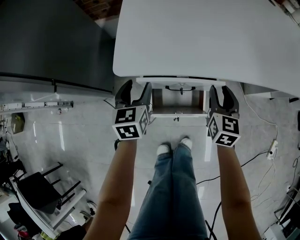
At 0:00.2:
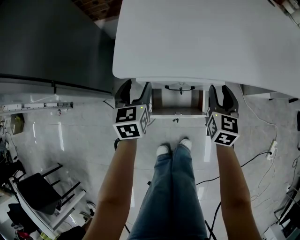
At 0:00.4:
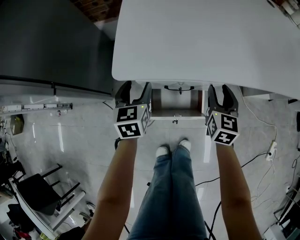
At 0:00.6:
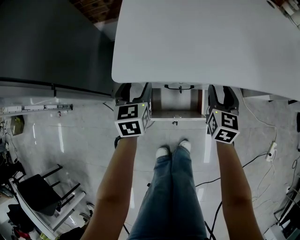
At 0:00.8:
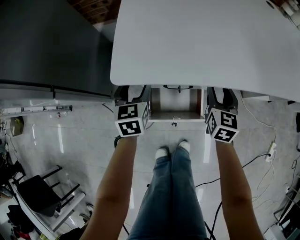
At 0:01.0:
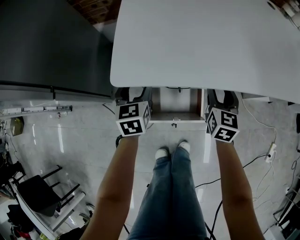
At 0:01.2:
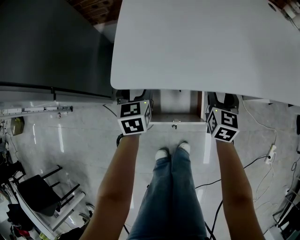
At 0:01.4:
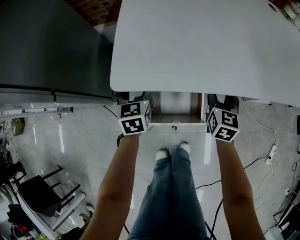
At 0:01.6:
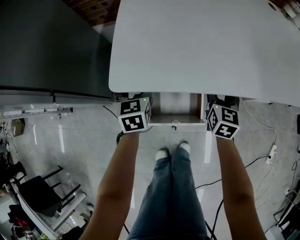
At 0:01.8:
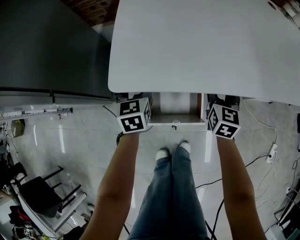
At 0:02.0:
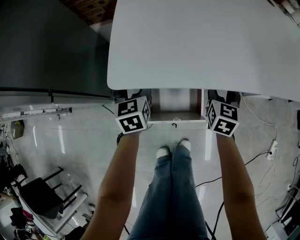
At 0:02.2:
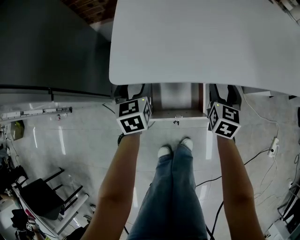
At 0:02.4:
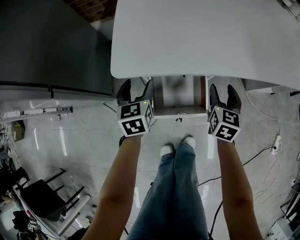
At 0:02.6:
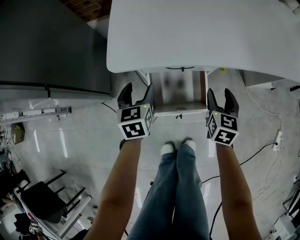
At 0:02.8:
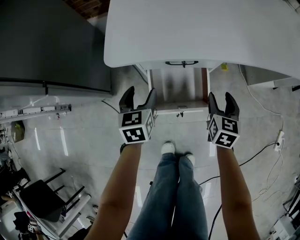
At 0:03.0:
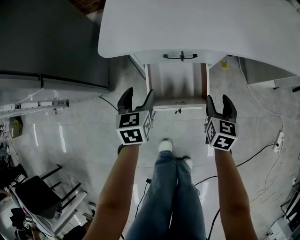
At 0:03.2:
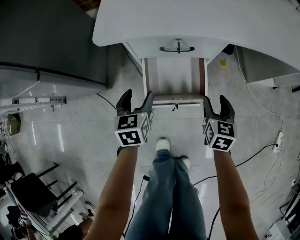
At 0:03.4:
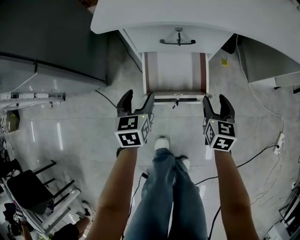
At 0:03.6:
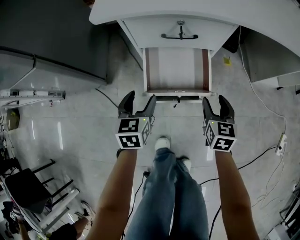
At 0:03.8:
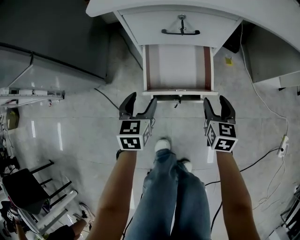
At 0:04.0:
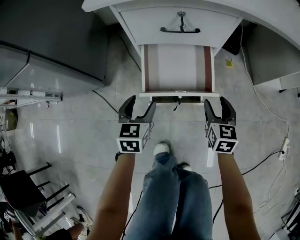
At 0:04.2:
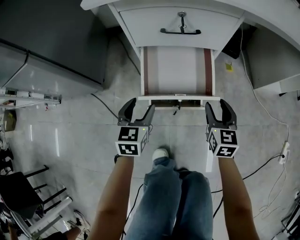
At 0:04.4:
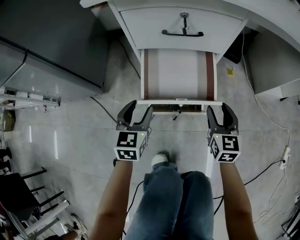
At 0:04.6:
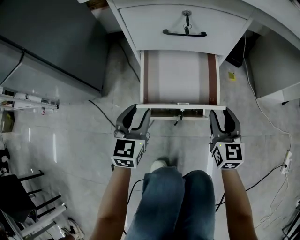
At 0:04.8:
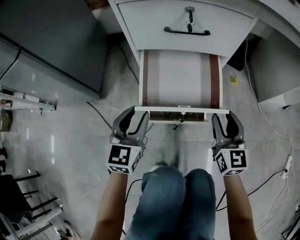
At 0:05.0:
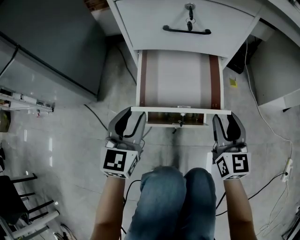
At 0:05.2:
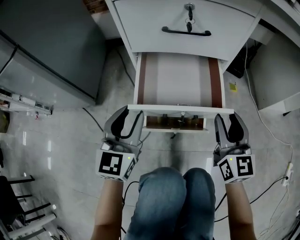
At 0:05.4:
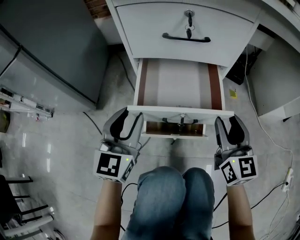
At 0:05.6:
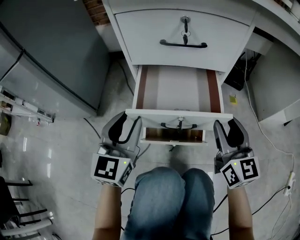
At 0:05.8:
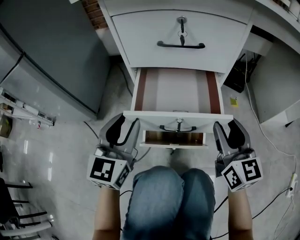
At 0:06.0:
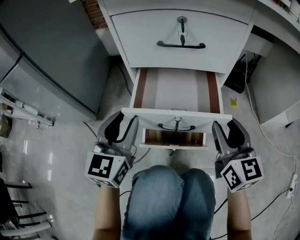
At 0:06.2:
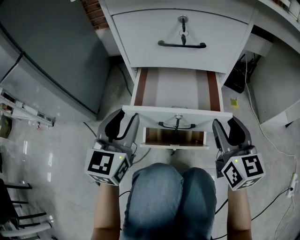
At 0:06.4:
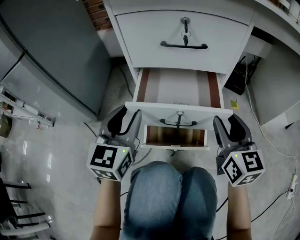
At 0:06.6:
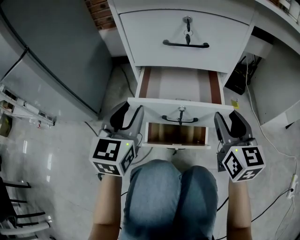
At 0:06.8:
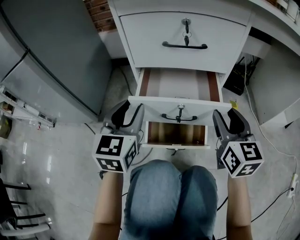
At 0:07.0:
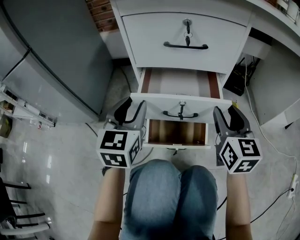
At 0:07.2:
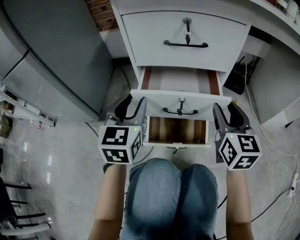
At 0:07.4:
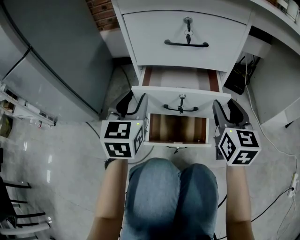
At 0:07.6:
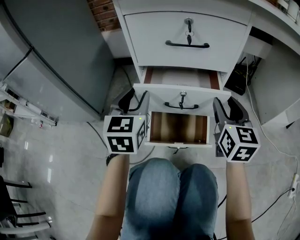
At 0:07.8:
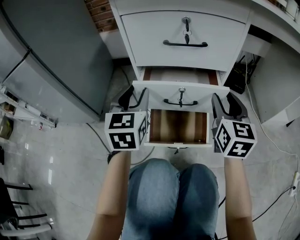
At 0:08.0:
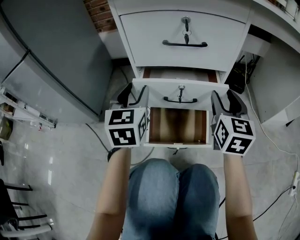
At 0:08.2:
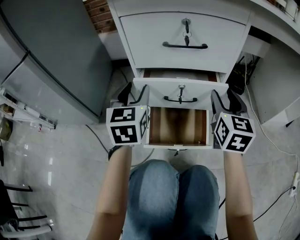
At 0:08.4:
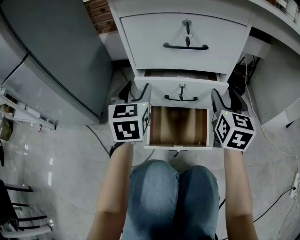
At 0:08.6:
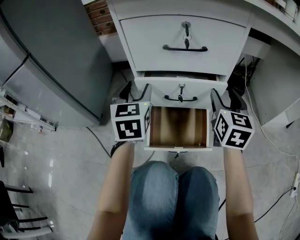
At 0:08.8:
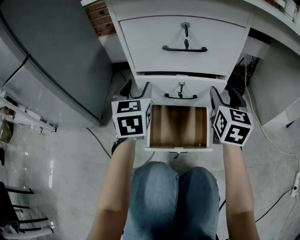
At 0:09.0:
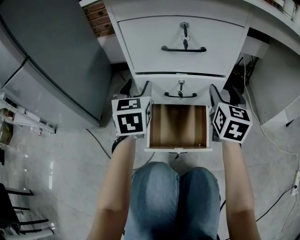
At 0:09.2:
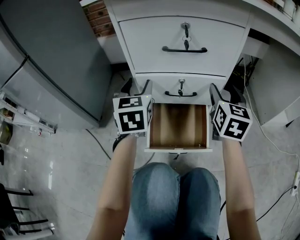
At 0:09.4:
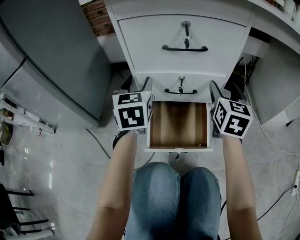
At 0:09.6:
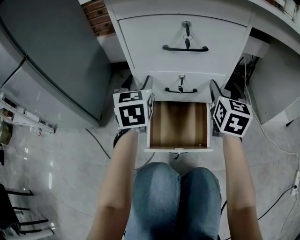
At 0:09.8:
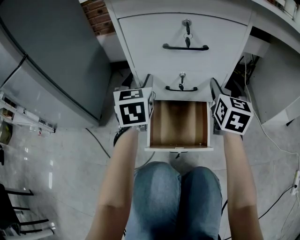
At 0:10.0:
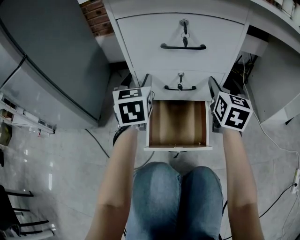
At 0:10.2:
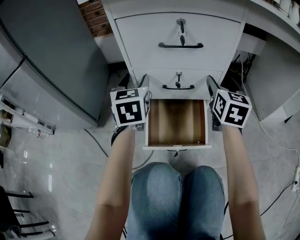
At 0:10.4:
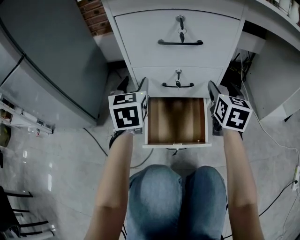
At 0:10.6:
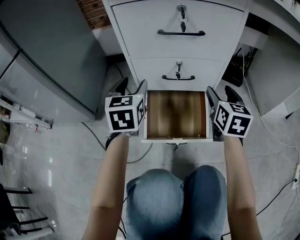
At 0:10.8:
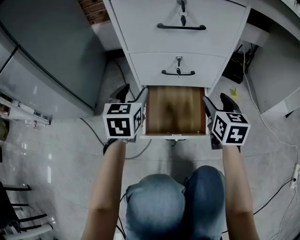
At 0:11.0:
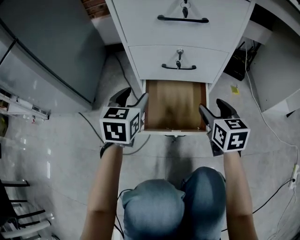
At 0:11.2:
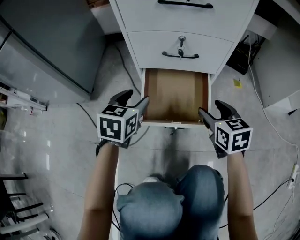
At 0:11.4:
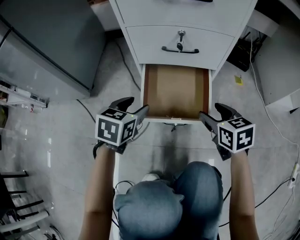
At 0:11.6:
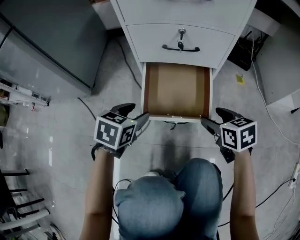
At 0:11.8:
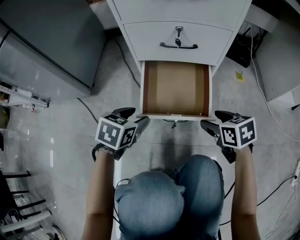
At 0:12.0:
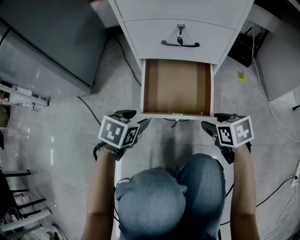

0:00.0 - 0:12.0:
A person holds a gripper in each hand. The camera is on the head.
0:00.0 - 0:01.6: Both grippers travel together forward, roughly 5 cm. The right gripper opens.
0:01.6 - 0:03.0: The two grippers go approximately 15 cm backward and downward.
0:03.0 - 0:04.4: The right gripper shifts roughly 10 cm downward. Meanwhile the left gripper goes about 15 cm downward and backward.
0:04.4 - 0:06.0: The right gripper ends up roughly 5 cm from where it was; the left gripper ends up some 5 cm from where it was.
0:06.0 - 0:07.6: The two grippers go approximately 5 cm forward.
0:07.6 - 0:09.0: The grippers both shift forward by about 5 cm.
0:09.0 - 0:10.4: The grippers make only small movements.
0:10.4 - 0:12.0: Both grippers travel together downward and backward, some 30 cm. The left gripper angles its fingers downward, by about 40 degrees. The right gripper tips its fingers downward by about 40 degrees.

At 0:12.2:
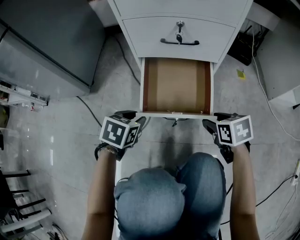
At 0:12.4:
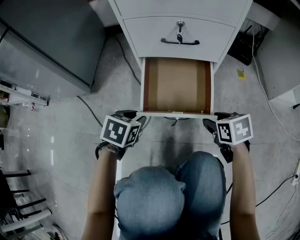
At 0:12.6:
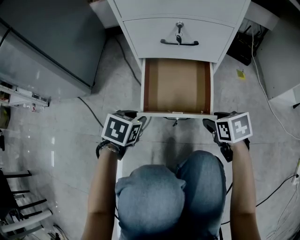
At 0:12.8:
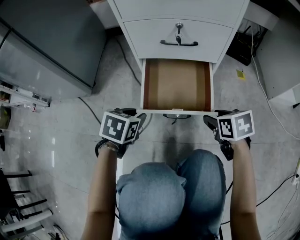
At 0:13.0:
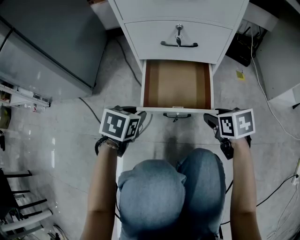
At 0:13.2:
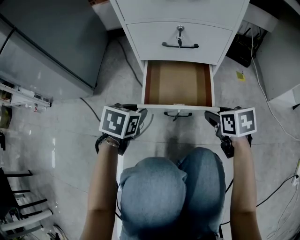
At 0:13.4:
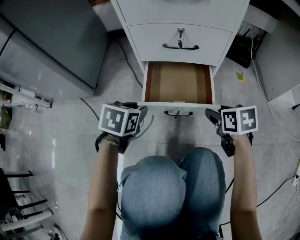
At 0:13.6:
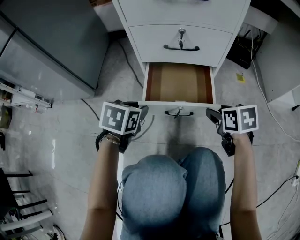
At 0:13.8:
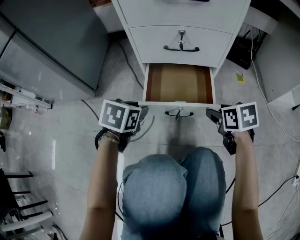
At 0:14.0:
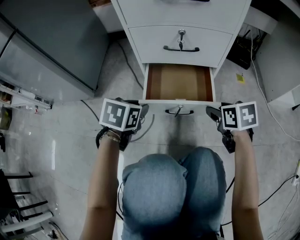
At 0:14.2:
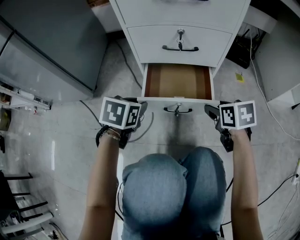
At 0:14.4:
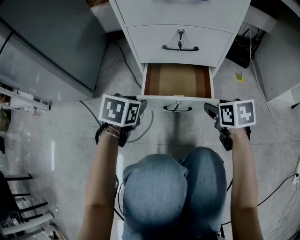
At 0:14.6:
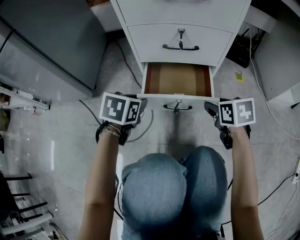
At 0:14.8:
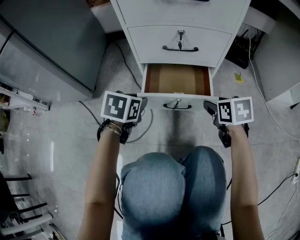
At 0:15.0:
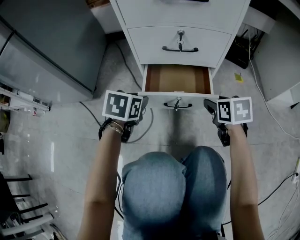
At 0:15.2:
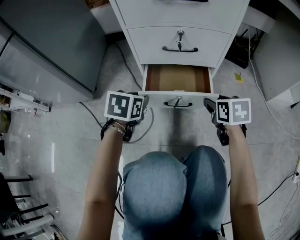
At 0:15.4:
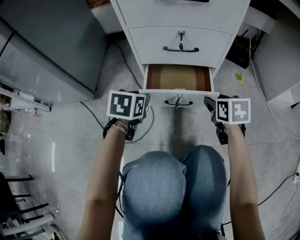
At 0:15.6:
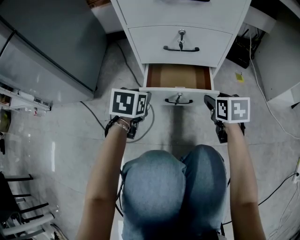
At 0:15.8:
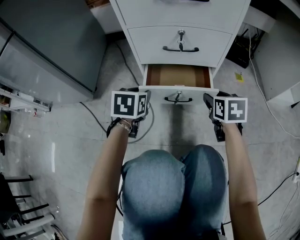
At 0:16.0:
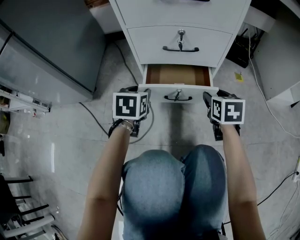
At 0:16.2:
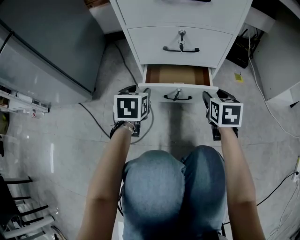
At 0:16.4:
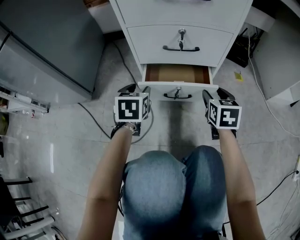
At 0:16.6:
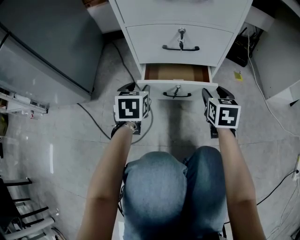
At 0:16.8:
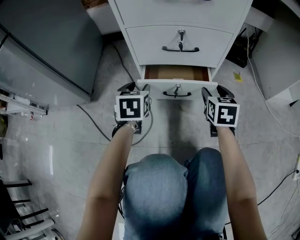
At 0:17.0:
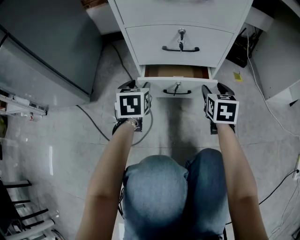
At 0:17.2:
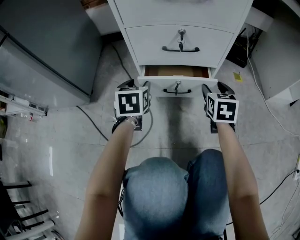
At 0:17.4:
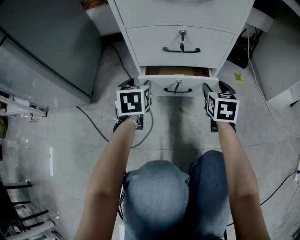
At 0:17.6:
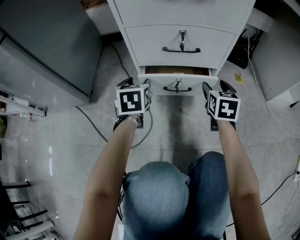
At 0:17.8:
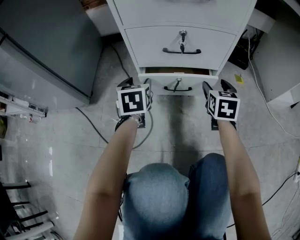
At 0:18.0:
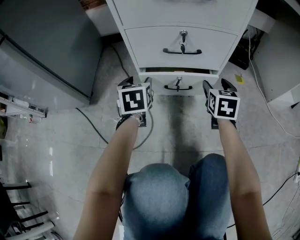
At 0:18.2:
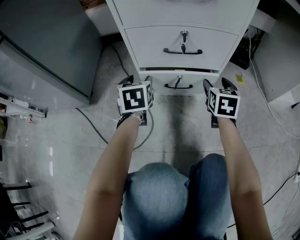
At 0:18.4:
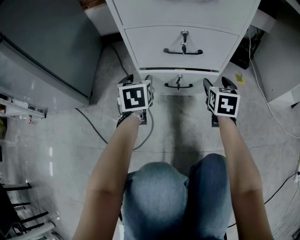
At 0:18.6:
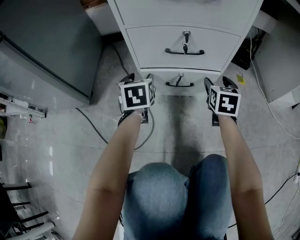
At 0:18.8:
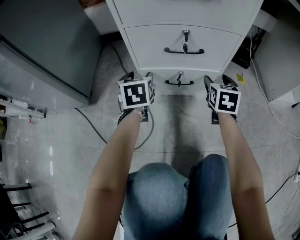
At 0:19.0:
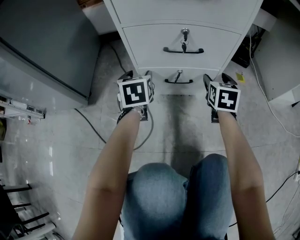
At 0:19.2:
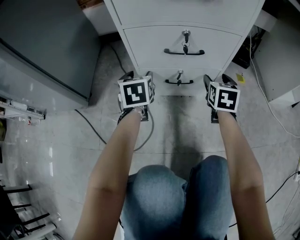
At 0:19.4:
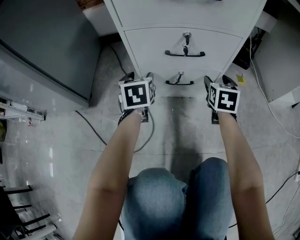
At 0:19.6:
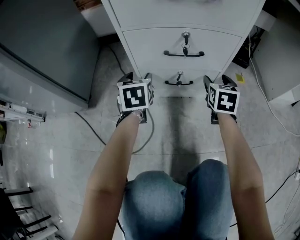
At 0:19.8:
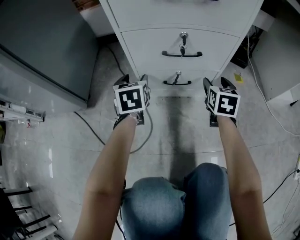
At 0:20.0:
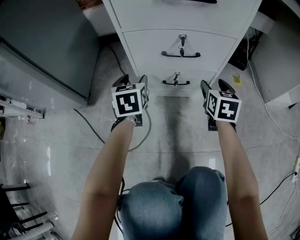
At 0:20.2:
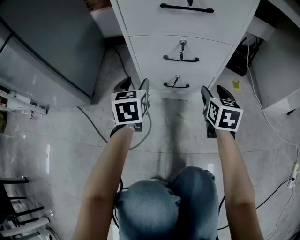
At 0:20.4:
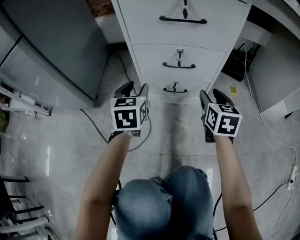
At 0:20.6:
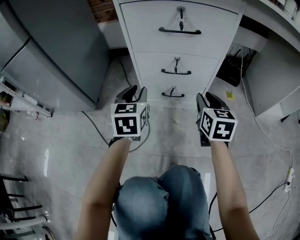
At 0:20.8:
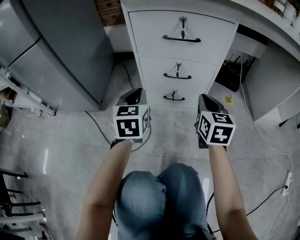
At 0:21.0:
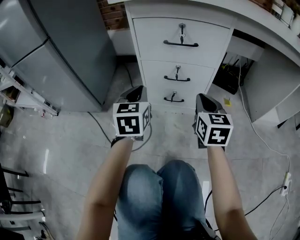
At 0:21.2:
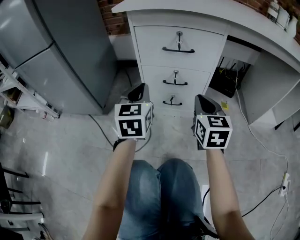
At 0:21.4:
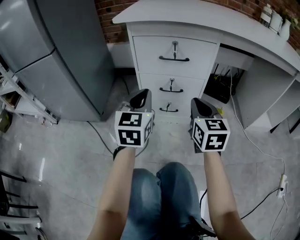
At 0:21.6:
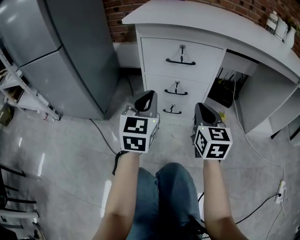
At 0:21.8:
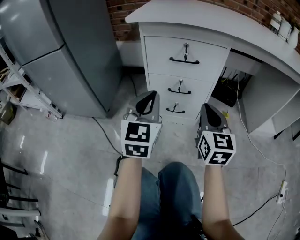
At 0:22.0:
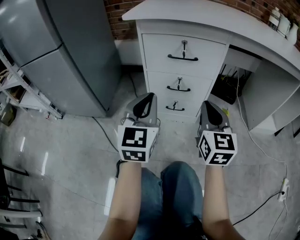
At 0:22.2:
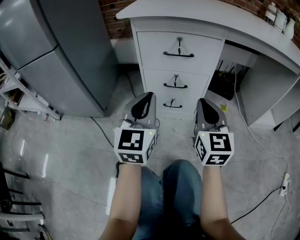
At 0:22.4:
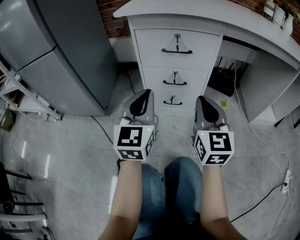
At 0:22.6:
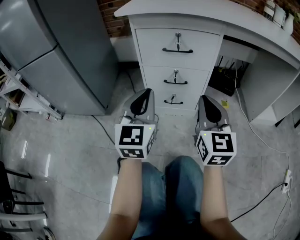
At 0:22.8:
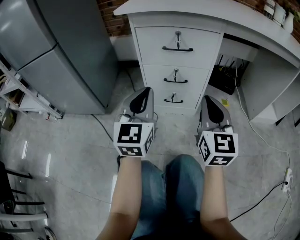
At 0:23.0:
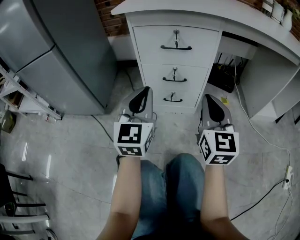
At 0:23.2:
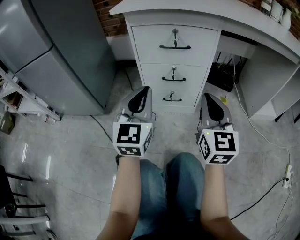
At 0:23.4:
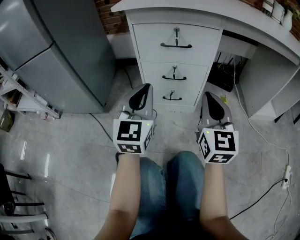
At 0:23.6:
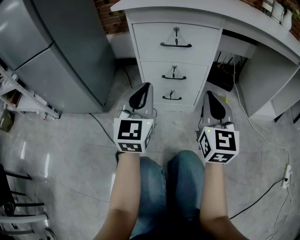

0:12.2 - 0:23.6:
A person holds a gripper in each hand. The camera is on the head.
0:12.2 - 0:13.6: The right gripper moves roughly 5 cm; the left gripper changes place by roughly 5 cm.
0:13.6 - 0:15.0: The grippers stay close to where they were, moving slightly.
0:15.0 - 0:16.4: The grippers move only a little.
0:16.4 - 0:17.8: The two grippers go approximately 5 cm forward.
0:17.8 - 0:19.4: The grippers stay close to where they were, moving slightly.
0:19.4 - 0:20.8: Both grippers travel together upward and backward, some 20 cm. The right gripper closes; the left gripper closes up.
0:20.8 - 0:22.2: Both grippers travel together upward and backward, approximately 15 cm. The left gripper changes its angle by roughly 20 degrees. The right gripper swivels about 20 degrees.
0:22.2 - 0:23.6: The grippers move only a little.
